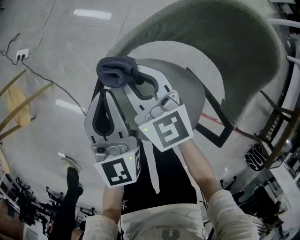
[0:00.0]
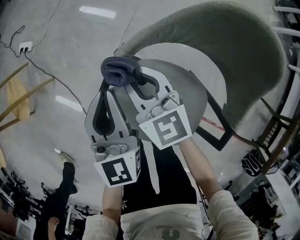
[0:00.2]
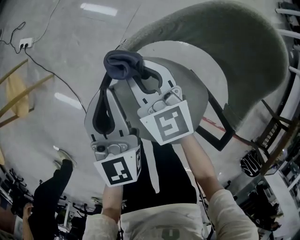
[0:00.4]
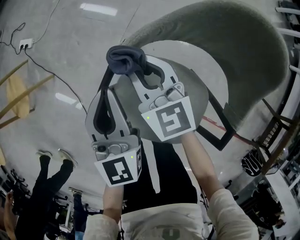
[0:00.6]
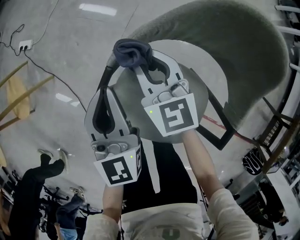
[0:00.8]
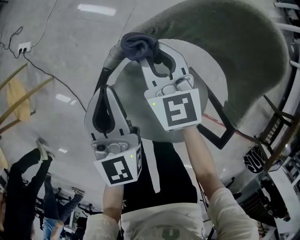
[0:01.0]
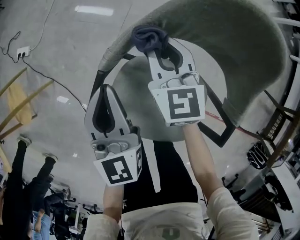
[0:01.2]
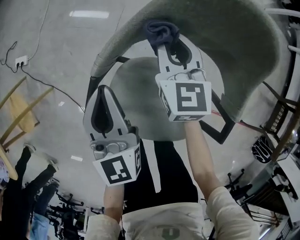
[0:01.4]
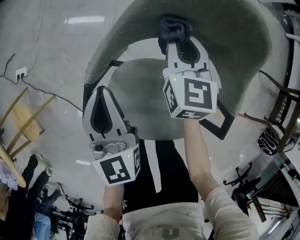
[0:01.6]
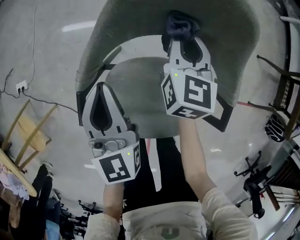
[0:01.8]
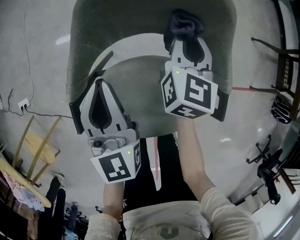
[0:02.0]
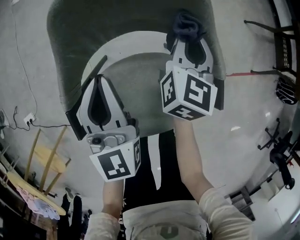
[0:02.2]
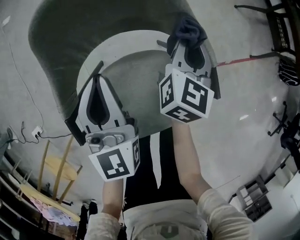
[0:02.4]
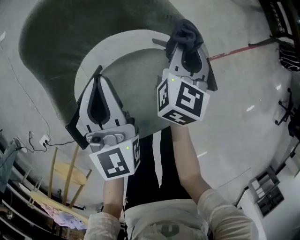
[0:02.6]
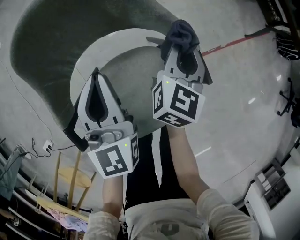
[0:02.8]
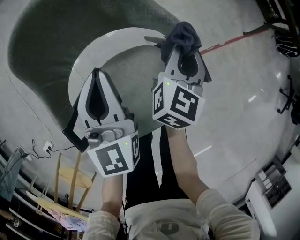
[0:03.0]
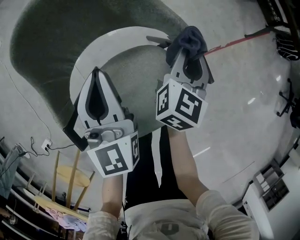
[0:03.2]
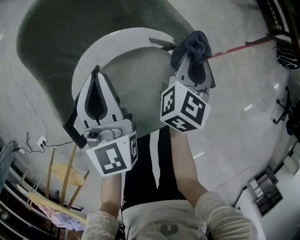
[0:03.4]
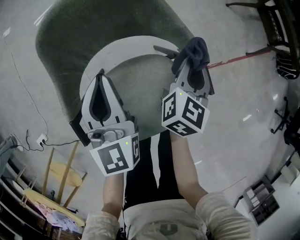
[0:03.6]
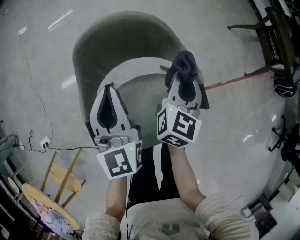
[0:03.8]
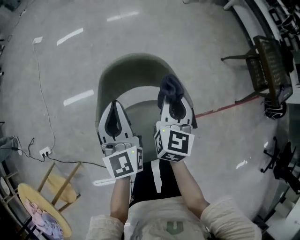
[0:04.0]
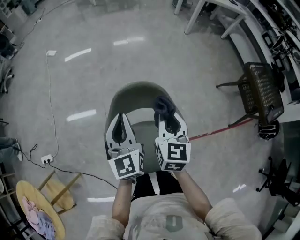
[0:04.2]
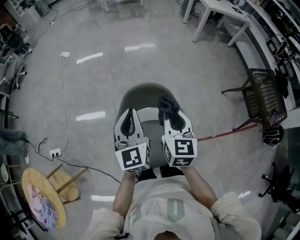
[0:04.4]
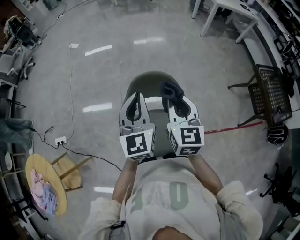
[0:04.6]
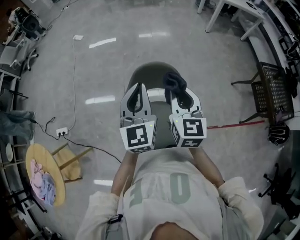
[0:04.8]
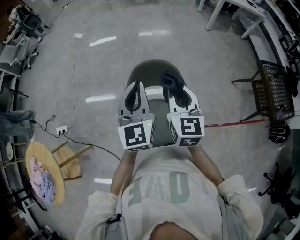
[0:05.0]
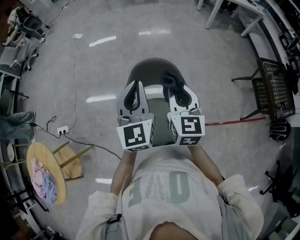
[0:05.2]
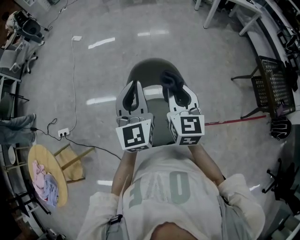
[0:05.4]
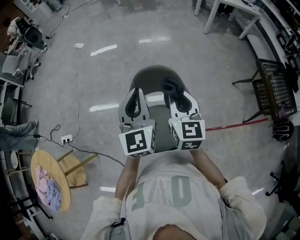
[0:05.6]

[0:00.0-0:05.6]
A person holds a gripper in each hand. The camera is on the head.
0:00.0 to 0:01.4: The right gripper is displaced to the right by about 15 cm, and turns by some 30 degrees.
0:01.4 to 0:02.8: The left gripper shifts by about 25 cm, and changes its angle by about 50 degrees. Meanwhile the right gripper moves some 35 cm, and swivels roughly 70 degrees.
0:02.8 to 0:04.2: Both grippers travel together upward, about 25 cm. The left gripper turns by about 20 degrees; the right gripper rotates some 40 degrees.
0:04.2 to 0:05.6: The grippers both shift upward and backward by roughly 15 cm.

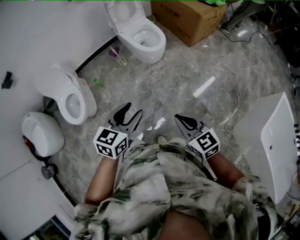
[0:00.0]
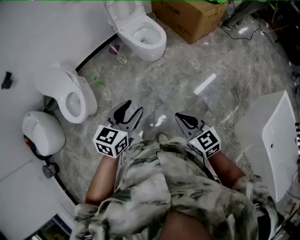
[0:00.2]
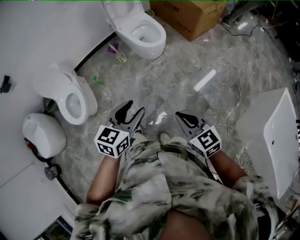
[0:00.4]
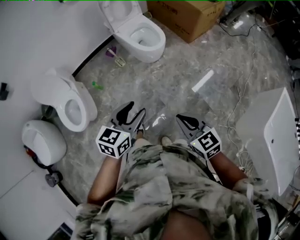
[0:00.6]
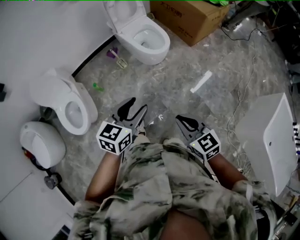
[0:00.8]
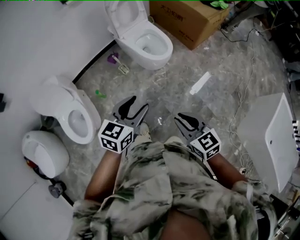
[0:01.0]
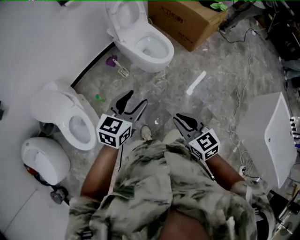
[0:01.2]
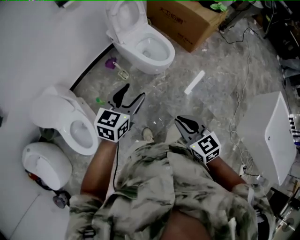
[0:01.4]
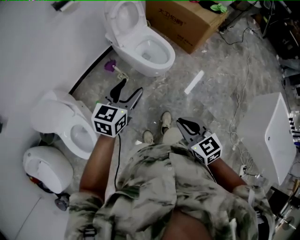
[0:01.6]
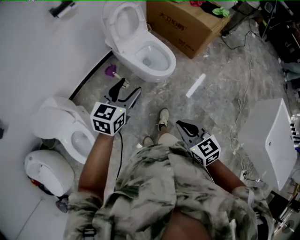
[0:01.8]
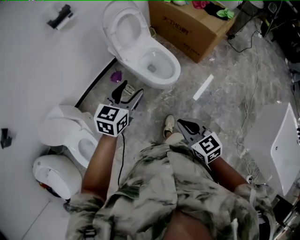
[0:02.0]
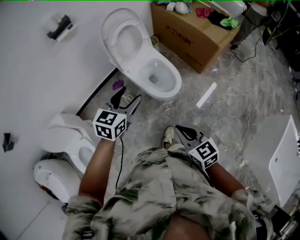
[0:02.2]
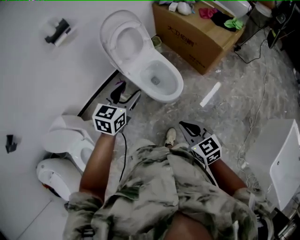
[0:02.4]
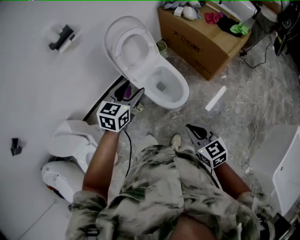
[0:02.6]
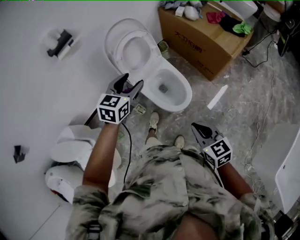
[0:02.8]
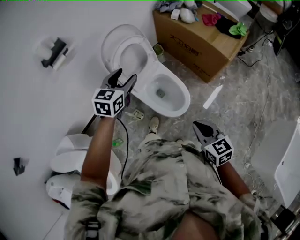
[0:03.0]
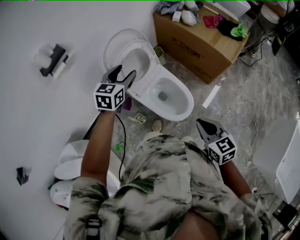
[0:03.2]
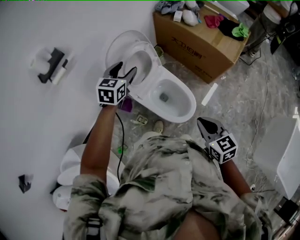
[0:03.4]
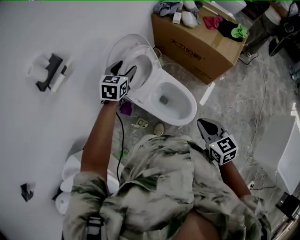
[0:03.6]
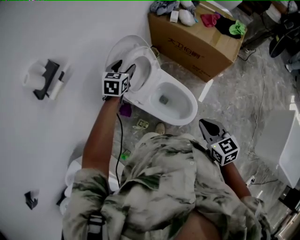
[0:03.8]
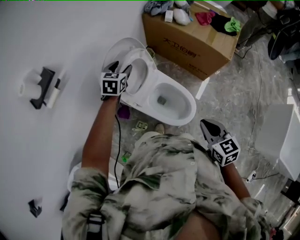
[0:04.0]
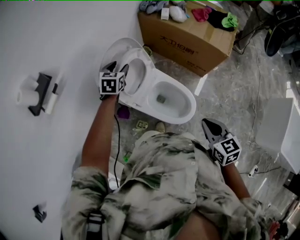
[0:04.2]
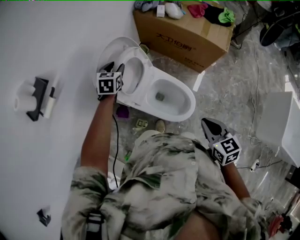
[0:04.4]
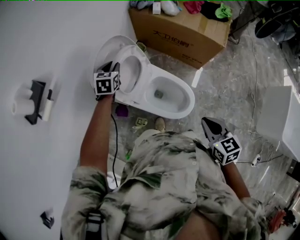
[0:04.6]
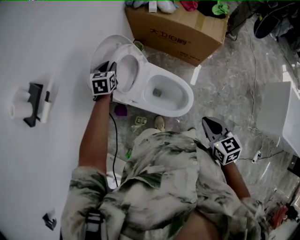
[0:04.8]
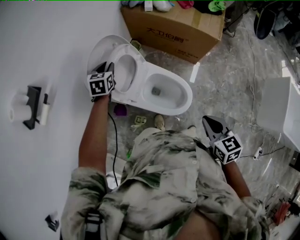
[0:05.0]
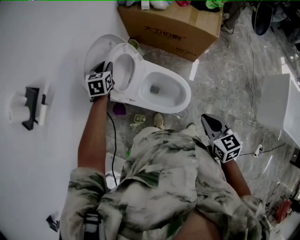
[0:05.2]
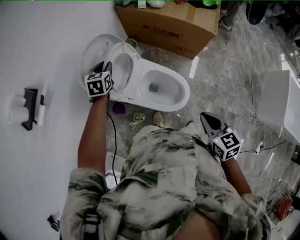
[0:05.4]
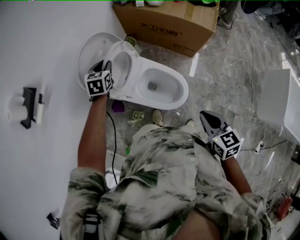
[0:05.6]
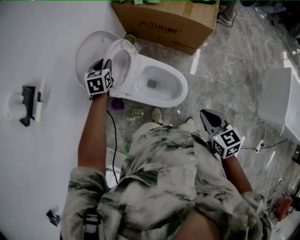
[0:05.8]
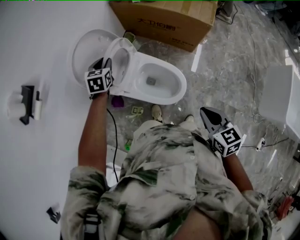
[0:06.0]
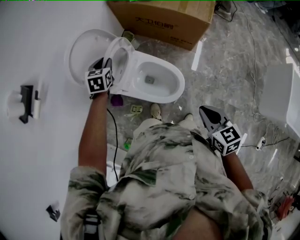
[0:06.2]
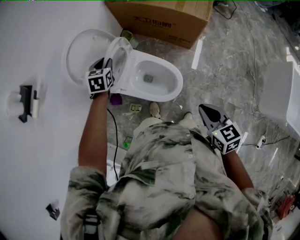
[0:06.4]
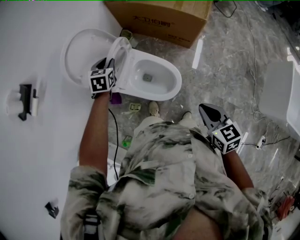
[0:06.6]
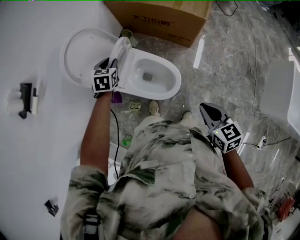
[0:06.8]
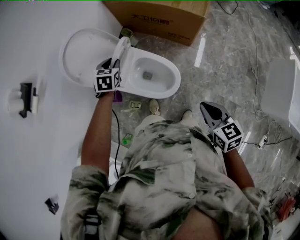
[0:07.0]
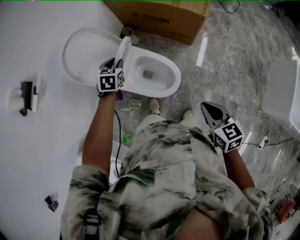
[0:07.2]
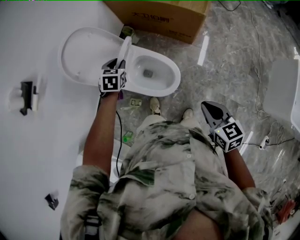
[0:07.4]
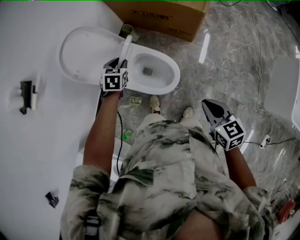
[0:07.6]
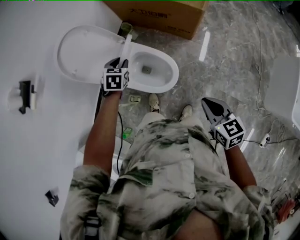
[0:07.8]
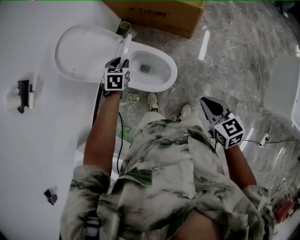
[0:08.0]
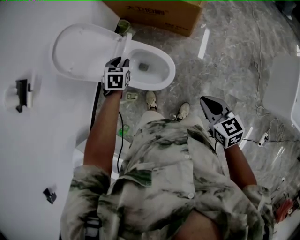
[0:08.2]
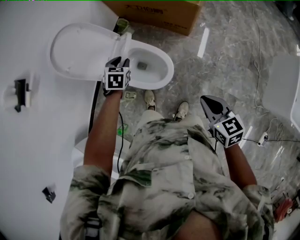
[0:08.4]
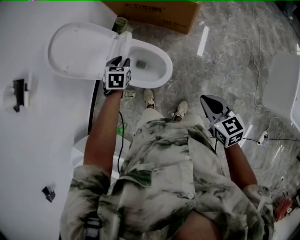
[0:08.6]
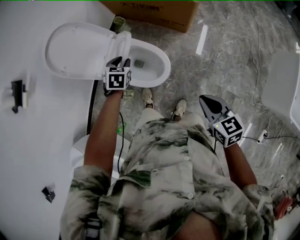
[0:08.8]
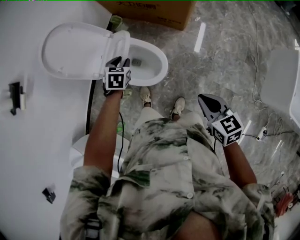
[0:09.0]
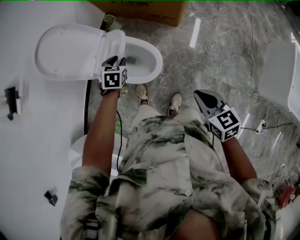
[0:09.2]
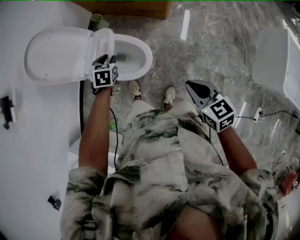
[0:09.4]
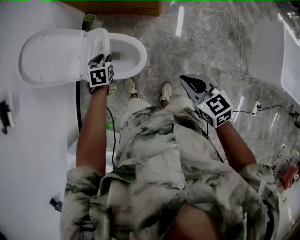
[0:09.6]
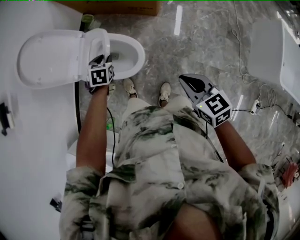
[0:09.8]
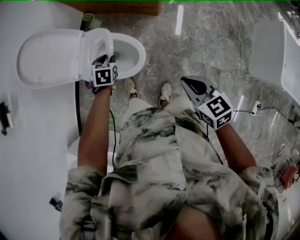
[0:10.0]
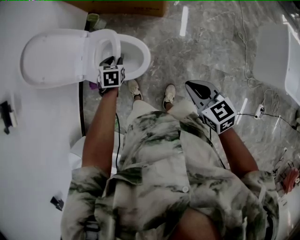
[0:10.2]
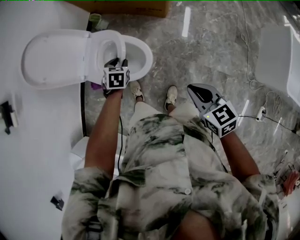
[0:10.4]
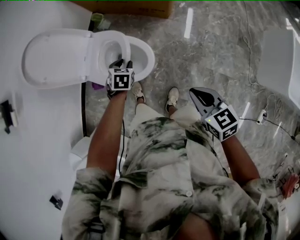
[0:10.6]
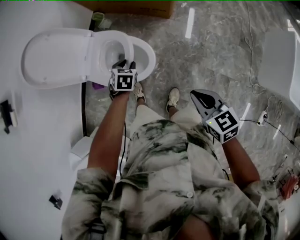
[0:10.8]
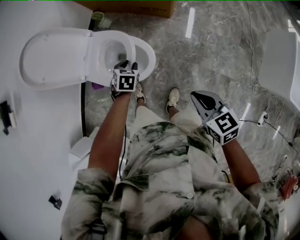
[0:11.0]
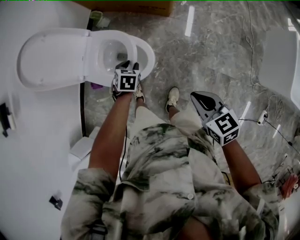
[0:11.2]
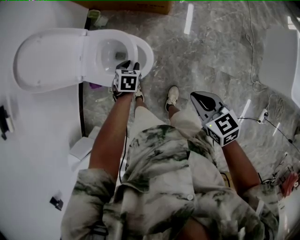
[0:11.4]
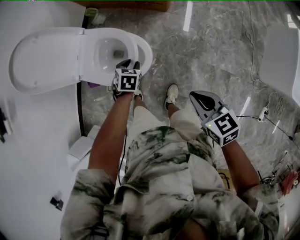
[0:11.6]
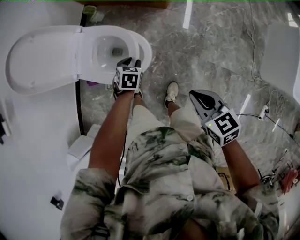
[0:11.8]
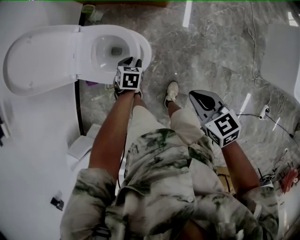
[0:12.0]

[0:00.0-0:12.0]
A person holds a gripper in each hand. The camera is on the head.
0:00.0 to 0:01.6: Both grippers move forward and to the left, approximately 40 cm.
0:01.6 to 0:03.0: Both grippers are carried forward, some 50 cm.
0:03.0 to 0:04.4: The left gripper shifts about 30 cm forward and downward; the right gripper heads forward and to the left, covering about 15 cm, and rotates some 20 degrees.
0:04.4 to 0:06.0: Both grippers travel together to the right and backward, some 10 cm.
0:06.0 to 0:07.6: The grippers both shift to the right and backward by about 15 cm.
0:07.6 to 0:09.0: The right gripper shifts some 5 cm to the right; the left gripper moves to the right, backward and downward, some 10 cm.
0:09.0 to 0:10.4: The left gripper moves downward and to the right, some 10 cm.
0:10.4 to 0:12.0: The right gripper moves downward, approximately 10 cm; the left gripper travels downward and to the right by roughly 15 cm.

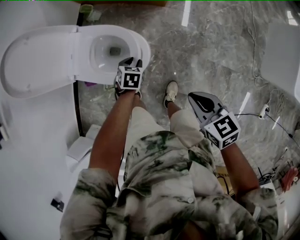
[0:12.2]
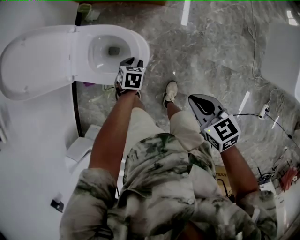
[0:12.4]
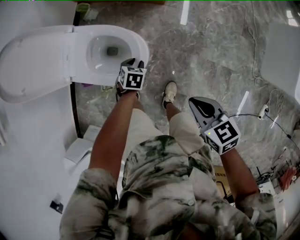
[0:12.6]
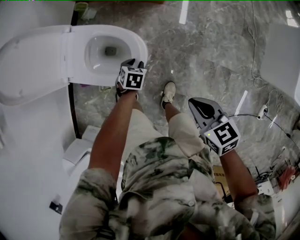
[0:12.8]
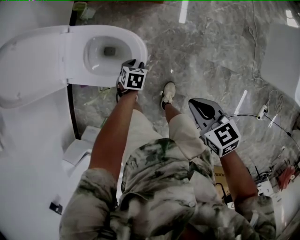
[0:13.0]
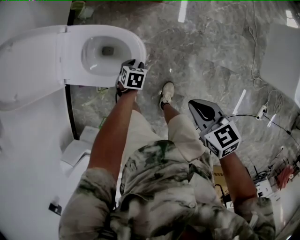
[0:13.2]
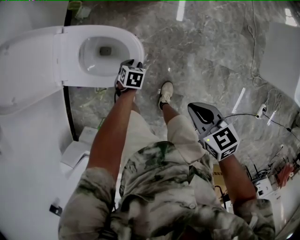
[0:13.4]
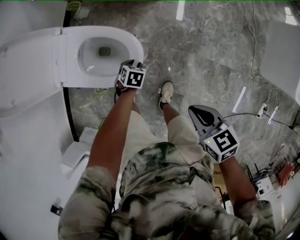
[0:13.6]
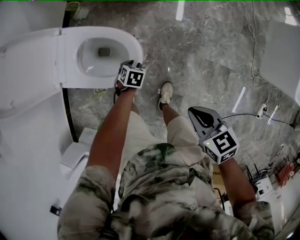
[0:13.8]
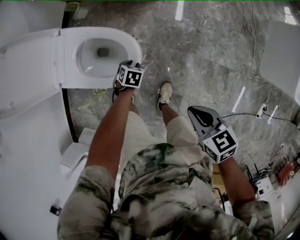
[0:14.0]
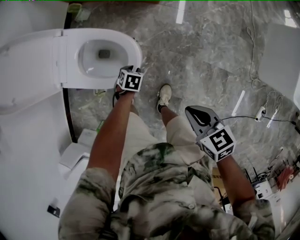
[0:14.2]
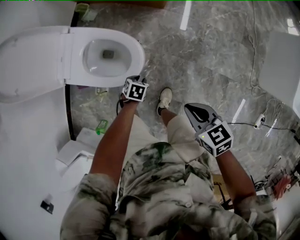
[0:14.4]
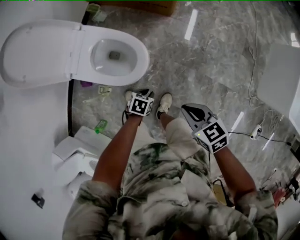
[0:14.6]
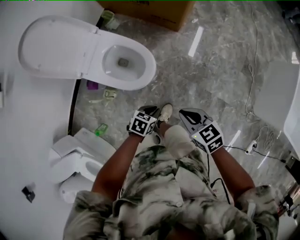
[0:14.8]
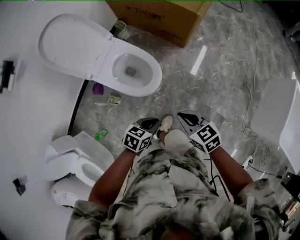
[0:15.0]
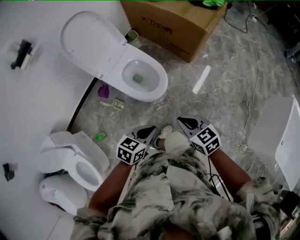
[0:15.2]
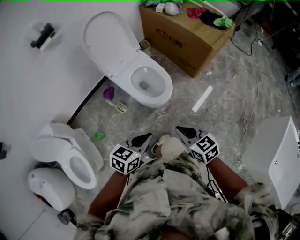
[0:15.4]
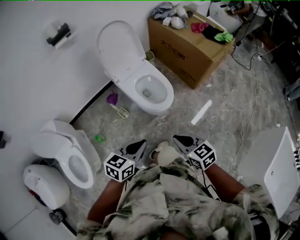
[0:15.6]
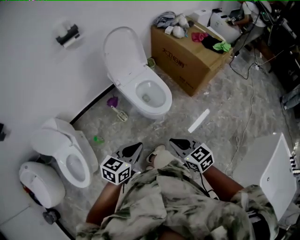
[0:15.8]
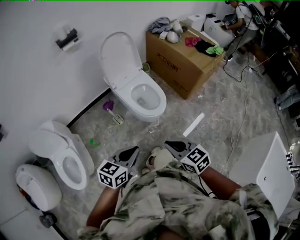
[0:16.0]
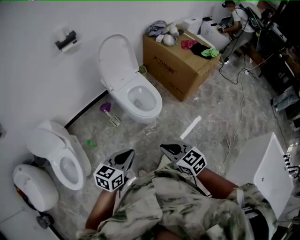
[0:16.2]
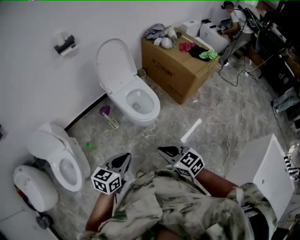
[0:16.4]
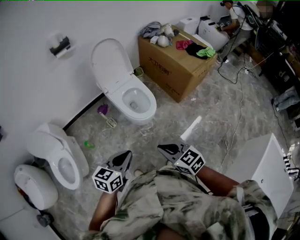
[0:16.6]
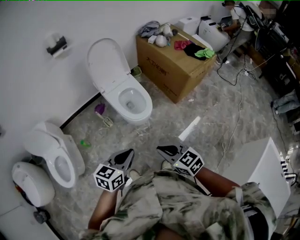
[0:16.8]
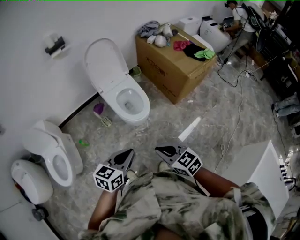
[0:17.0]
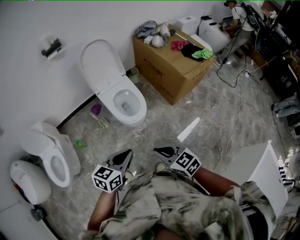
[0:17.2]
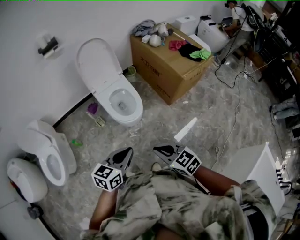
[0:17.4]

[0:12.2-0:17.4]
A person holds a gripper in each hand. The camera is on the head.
0:12.2 to 0:14.0: The left gripper travels downward by about 15 cm. Meanwhile the right gripper heads downward, covering some 10 cm.
0:14.0 to 0:15.6: The right gripper travels upward by about 25 cm, and rotates about 50 degrees. The left gripper heads upward, covering roughly 50 cm, tilts its fingers approximately 50 degrees upward, and closes.
0:15.6 to 0:17.4: The left gripper shifts roughly 20 cm to the right and upward. Meanwhile the right gripper goes approximately 20 cm to the right, upward and backward.

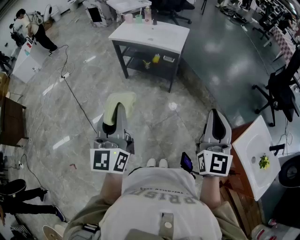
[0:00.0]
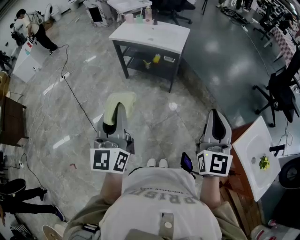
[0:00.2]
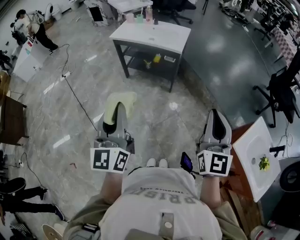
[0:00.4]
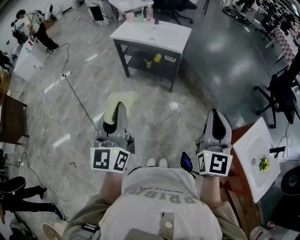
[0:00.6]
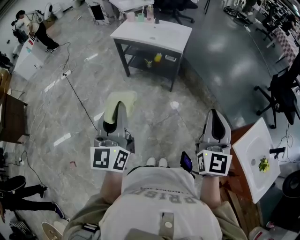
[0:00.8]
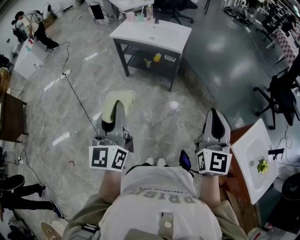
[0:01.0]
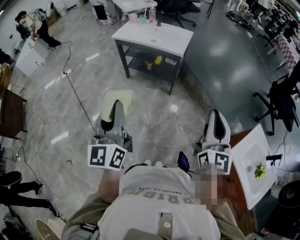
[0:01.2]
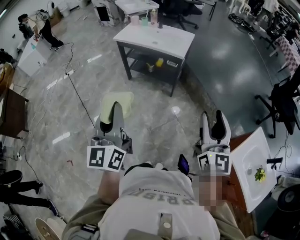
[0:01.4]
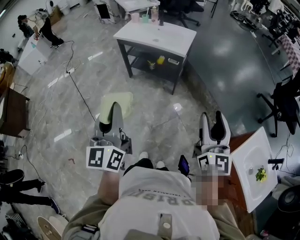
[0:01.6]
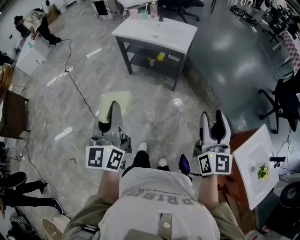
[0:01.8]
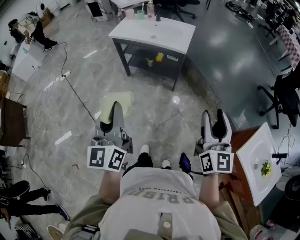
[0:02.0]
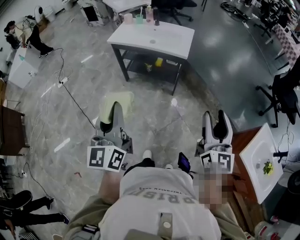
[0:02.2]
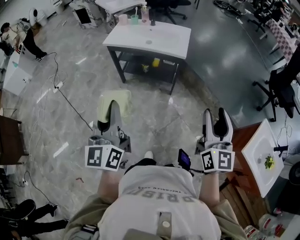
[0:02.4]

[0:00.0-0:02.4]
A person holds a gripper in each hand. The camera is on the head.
0:00.0 to 0:01.2: The grippers move only a little.
0:01.2 to 0:02.4: The grippers both shift forward and to the left by some 15 cm. The right gripper opens.
